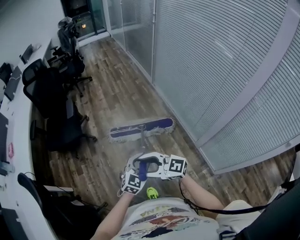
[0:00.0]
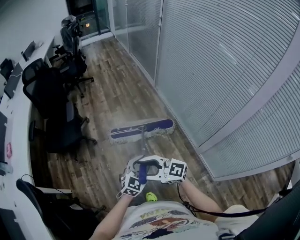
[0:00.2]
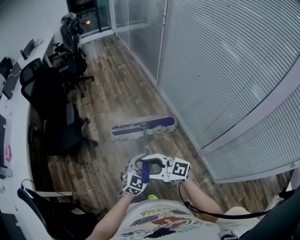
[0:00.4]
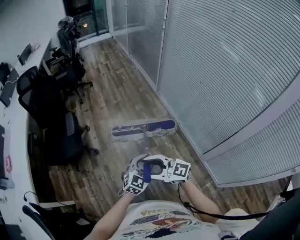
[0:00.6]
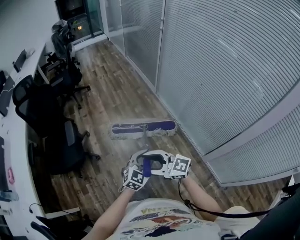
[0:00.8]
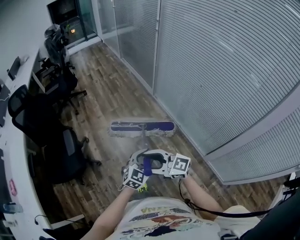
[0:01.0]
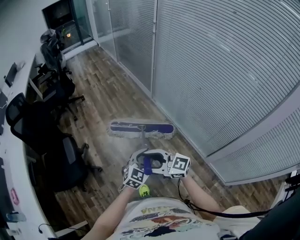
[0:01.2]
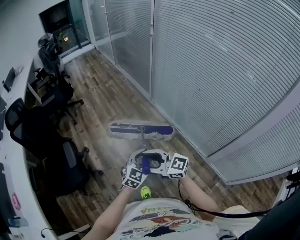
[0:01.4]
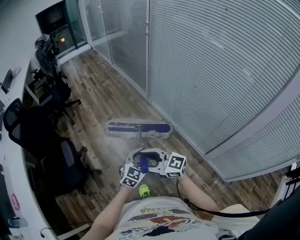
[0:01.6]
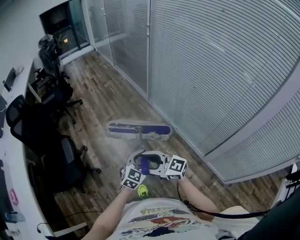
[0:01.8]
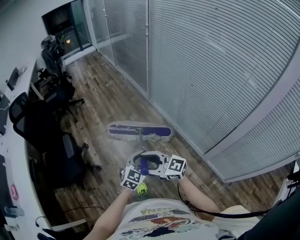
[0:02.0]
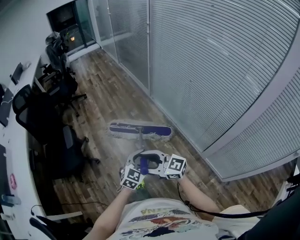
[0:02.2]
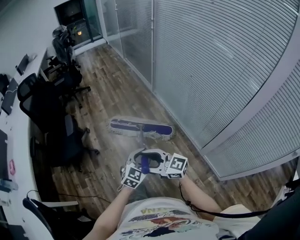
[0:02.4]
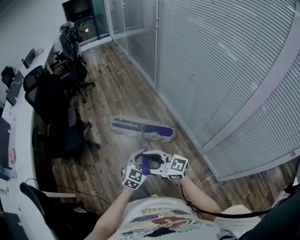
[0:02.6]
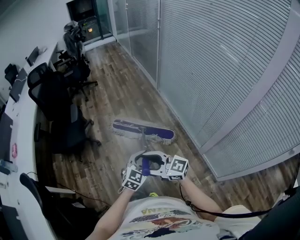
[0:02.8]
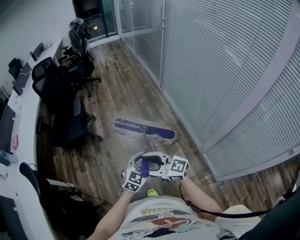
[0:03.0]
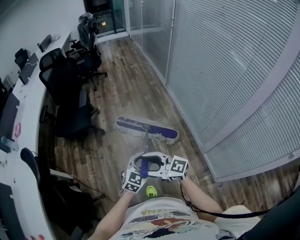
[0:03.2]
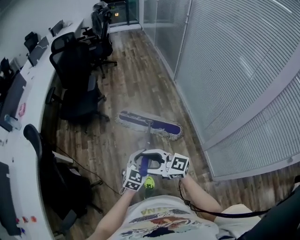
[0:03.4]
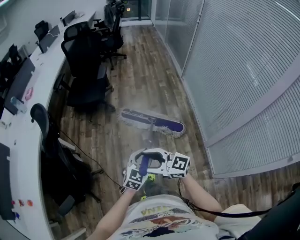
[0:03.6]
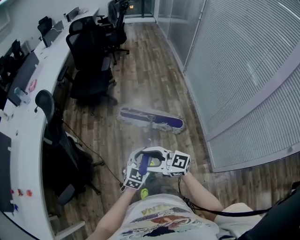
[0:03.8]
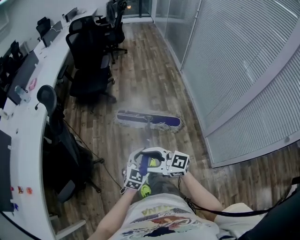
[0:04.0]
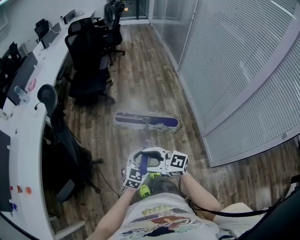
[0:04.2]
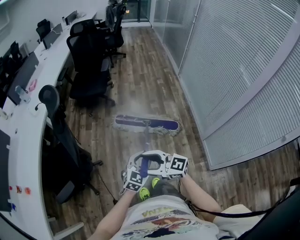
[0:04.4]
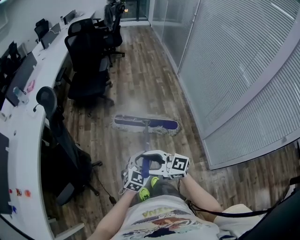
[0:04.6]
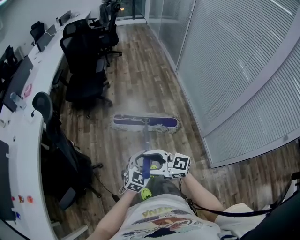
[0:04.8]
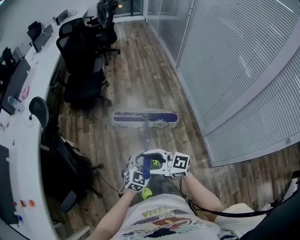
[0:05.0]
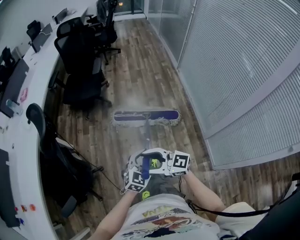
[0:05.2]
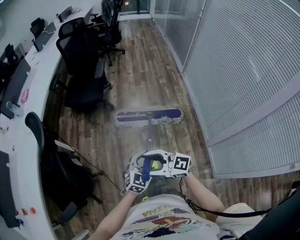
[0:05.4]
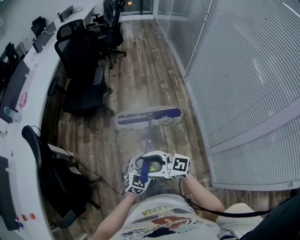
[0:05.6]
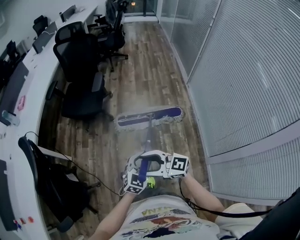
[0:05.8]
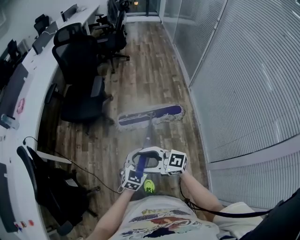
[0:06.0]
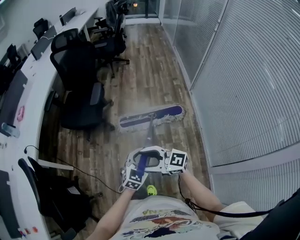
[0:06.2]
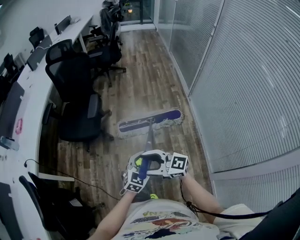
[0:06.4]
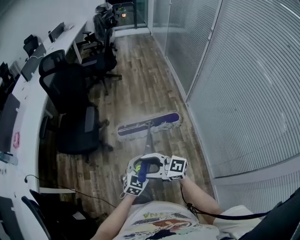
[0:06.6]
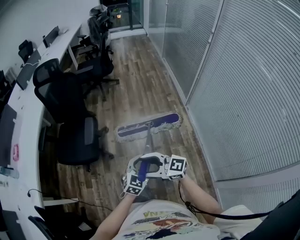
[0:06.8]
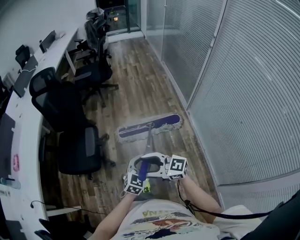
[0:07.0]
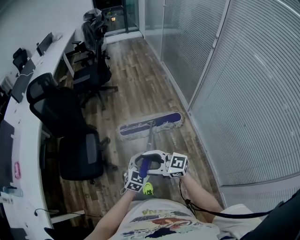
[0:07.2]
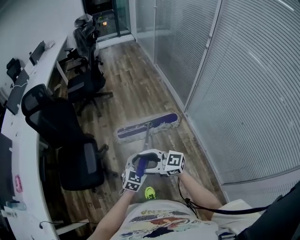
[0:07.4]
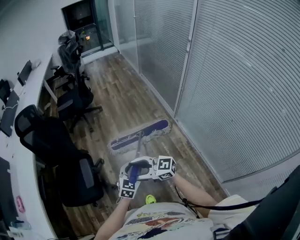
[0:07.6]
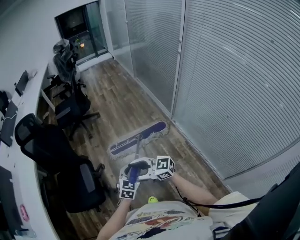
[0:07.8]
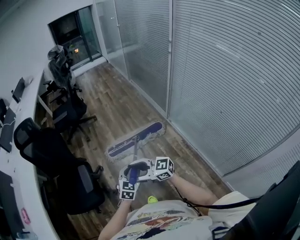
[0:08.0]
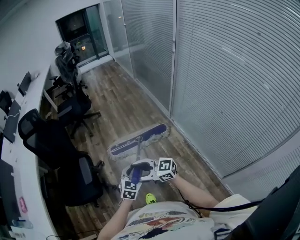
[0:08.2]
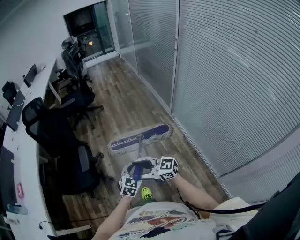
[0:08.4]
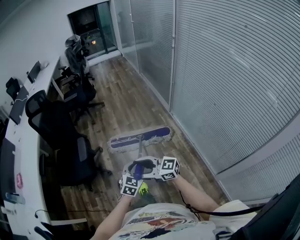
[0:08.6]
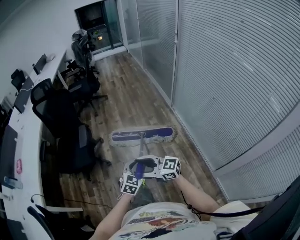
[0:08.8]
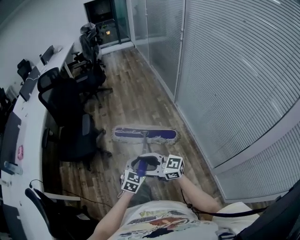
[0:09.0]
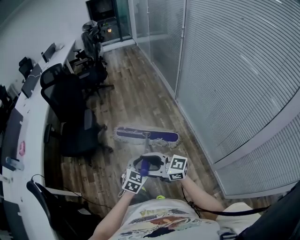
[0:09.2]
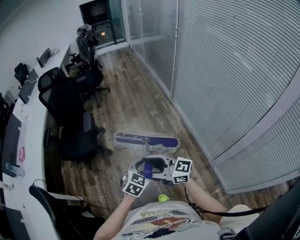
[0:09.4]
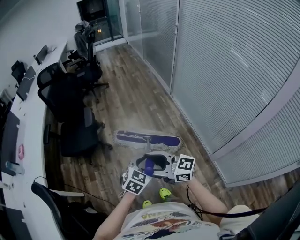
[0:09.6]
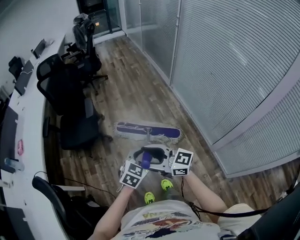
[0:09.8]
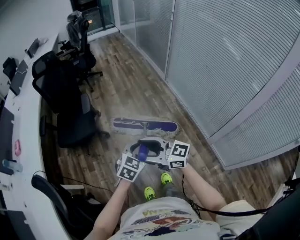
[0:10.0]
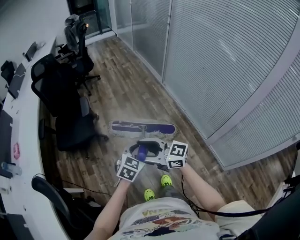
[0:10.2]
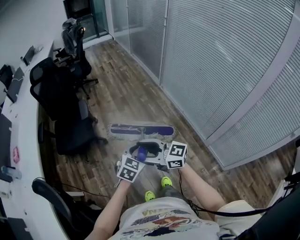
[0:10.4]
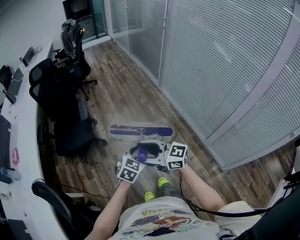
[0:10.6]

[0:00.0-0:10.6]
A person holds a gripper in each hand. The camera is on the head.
0:00.0 to 0:01.6: The pair of grippers is taken forward, about 40 cm.
0:01.6 to 0:03.0: The pair of grippers is taken backward, some 40 cm.
0:03.0 to 0:04.6: The two grippers go roughly 35 cm backward and to the left.
0:04.6 to 0:06.0: The pair of grippers is taken forward and to the right, some 50 cm.
0:06.0 to 0:07.6: The pair of grippers is taken forward, approximately 50 cm.
0:07.6 to 0:09.0: The pair of grippers is taken backward, some 50 cm.
0:09.0 to 0:10.6: Both grippers move to the left and backward, some 20 cm.

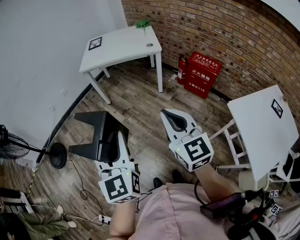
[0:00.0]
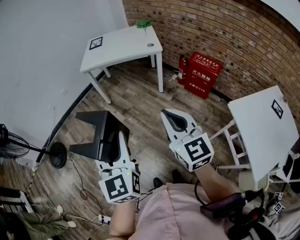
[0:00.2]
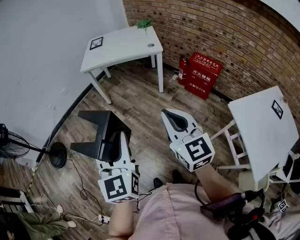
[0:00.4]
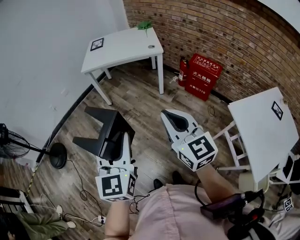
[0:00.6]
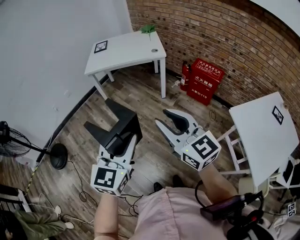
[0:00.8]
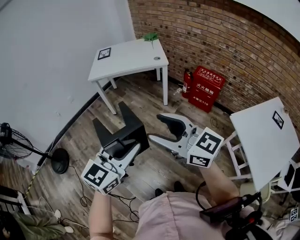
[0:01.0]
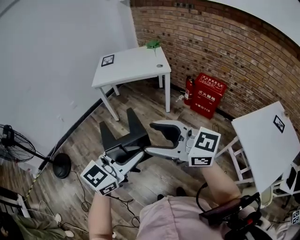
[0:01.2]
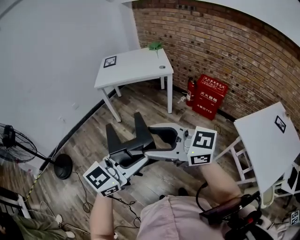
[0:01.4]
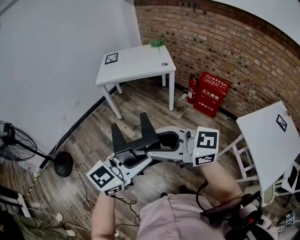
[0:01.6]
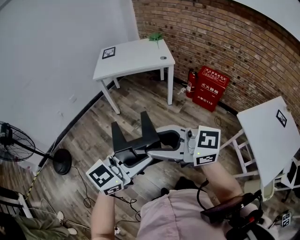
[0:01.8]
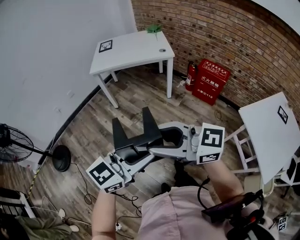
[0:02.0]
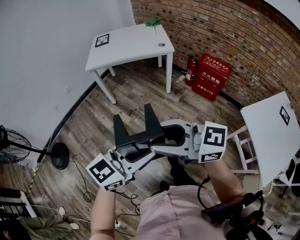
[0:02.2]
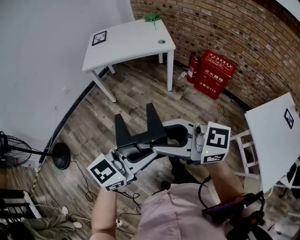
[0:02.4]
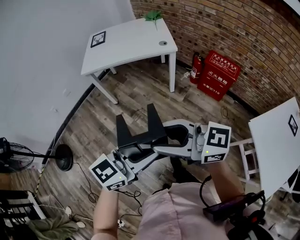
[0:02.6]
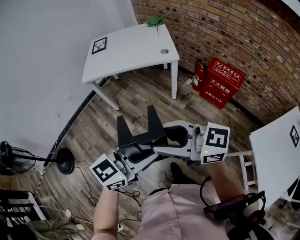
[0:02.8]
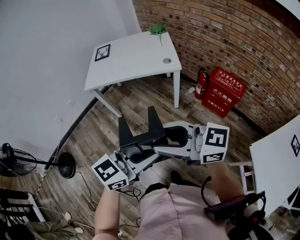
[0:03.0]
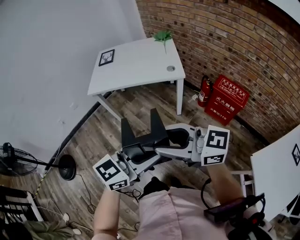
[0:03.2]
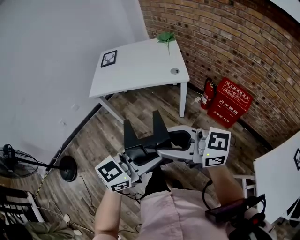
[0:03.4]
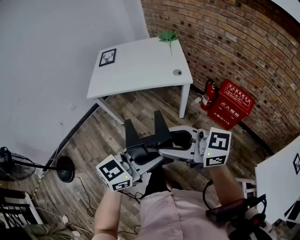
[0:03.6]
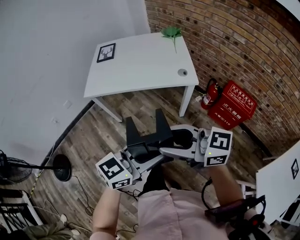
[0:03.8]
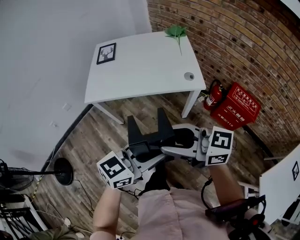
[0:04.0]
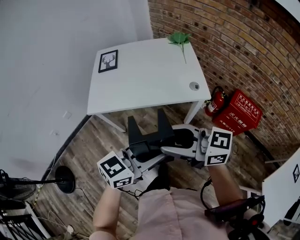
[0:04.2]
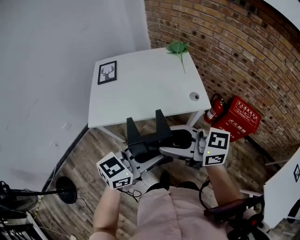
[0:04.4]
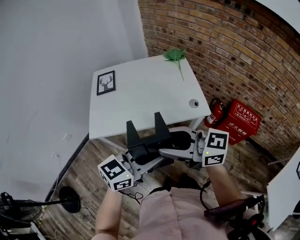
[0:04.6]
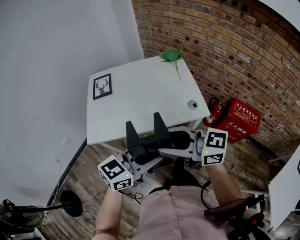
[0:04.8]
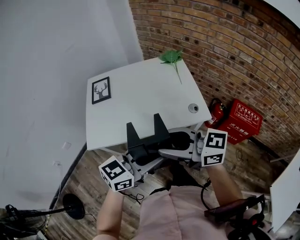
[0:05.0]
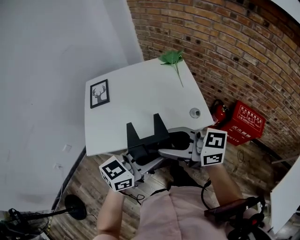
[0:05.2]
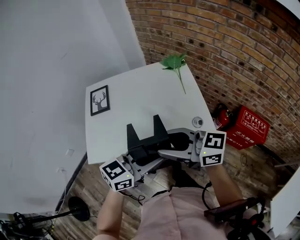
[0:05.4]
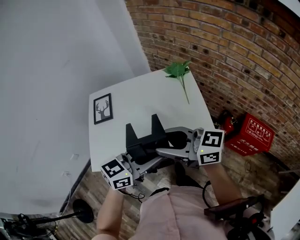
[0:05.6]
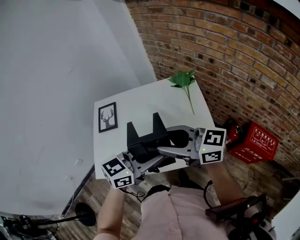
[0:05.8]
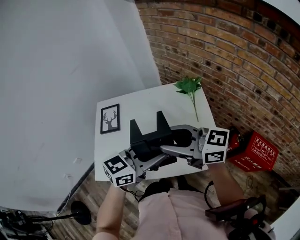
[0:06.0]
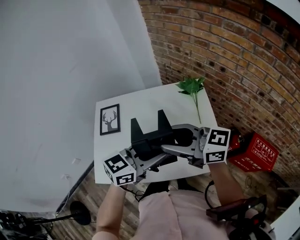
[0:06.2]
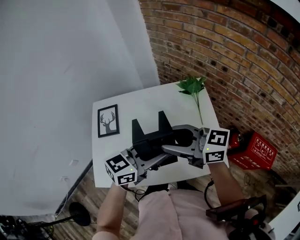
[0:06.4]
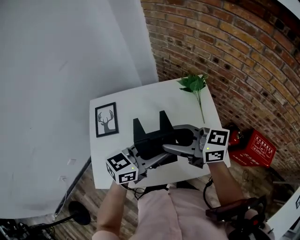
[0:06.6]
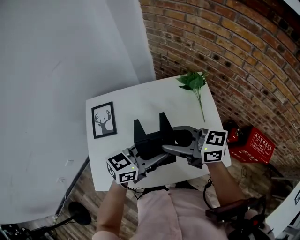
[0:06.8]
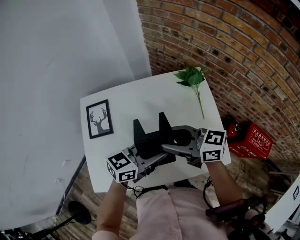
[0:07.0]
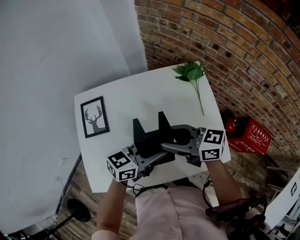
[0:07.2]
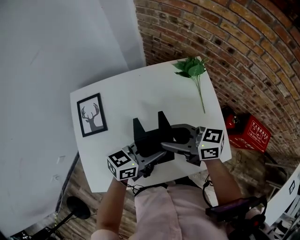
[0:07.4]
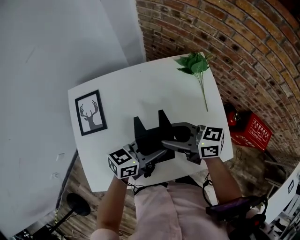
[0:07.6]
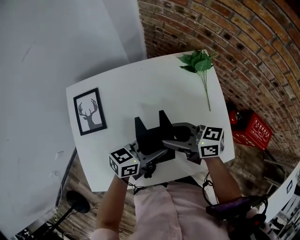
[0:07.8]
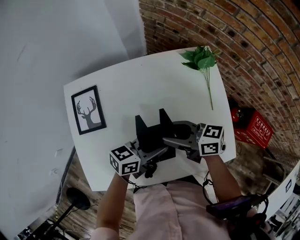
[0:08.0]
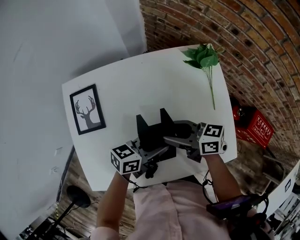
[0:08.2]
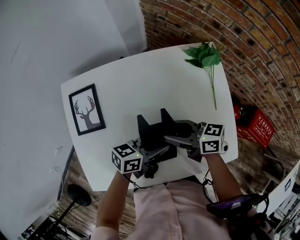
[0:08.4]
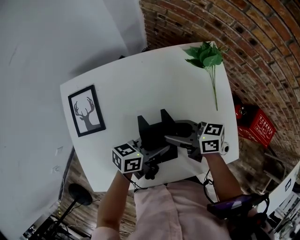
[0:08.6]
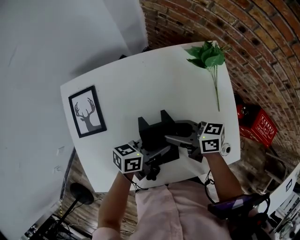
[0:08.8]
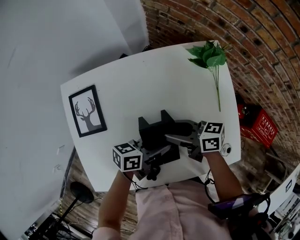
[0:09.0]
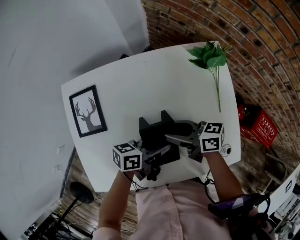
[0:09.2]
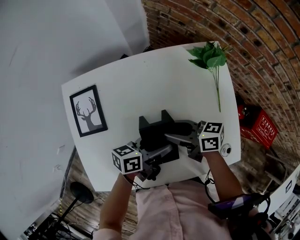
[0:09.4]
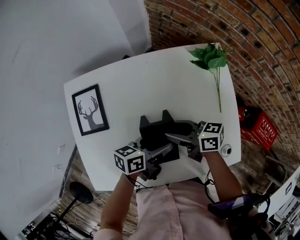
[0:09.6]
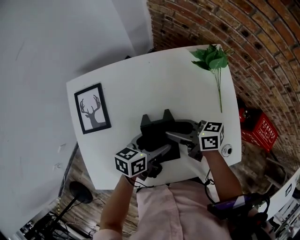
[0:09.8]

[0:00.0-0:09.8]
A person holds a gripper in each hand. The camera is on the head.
0:00.0 to 0:01.4: The left gripper changes place by some 5 cm, and swivels some 60 degrees, while the right gripper changes place by roughly 15 cm, turns by roughly 50 degrees, and opens.
0:01.4 to 0:02.8: The right gripper moves approximately 25 cm, and closes its fingers. The left gripper changes place by approximately 25 cm.
0:02.8 to 0:04.2: The right gripper moves roughly 35 cm, while the left gripper ends up approximately 35 cm from where it was.
0:04.2 to 0:05.6: The left gripper changes place by about 30 cm, while the right gripper changes place by some 30 cm.
0:05.6 to 0:07.0: The right gripper shifts by approximately 20 cm, while the left gripper moves roughly 20 cm.
0:07.0 to 0:08.4: The grippers both shift downward by some 15 cm. The left gripper swivels about 20 degrees; the right gripper turns by some 20 degrees.
0:08.4 to 0:09.8: The left gripper opens its fingers.

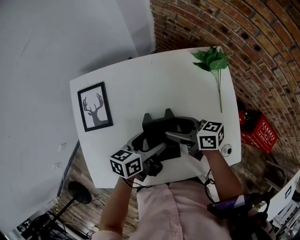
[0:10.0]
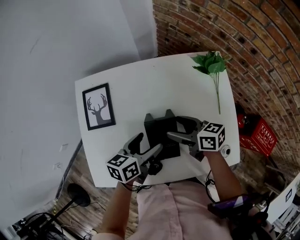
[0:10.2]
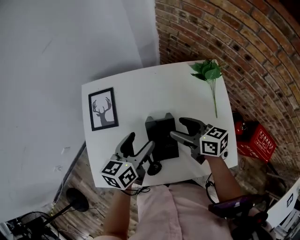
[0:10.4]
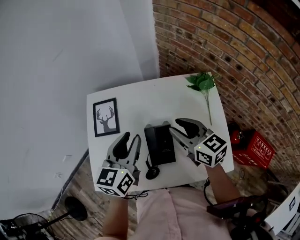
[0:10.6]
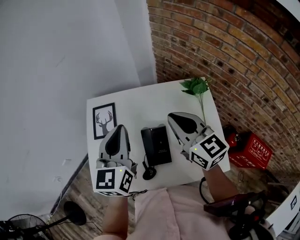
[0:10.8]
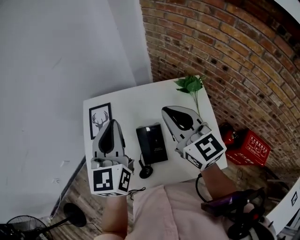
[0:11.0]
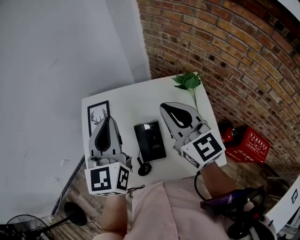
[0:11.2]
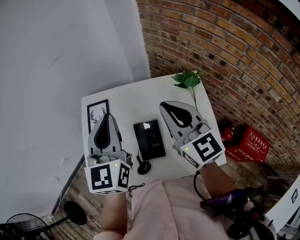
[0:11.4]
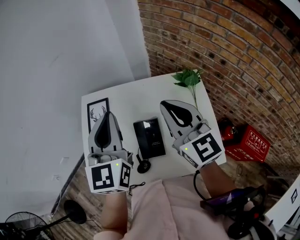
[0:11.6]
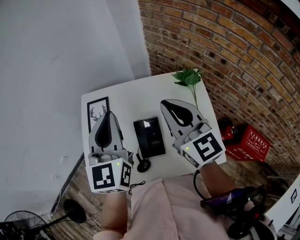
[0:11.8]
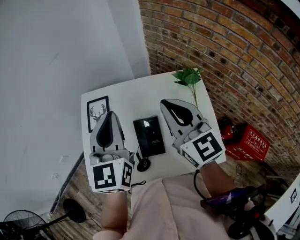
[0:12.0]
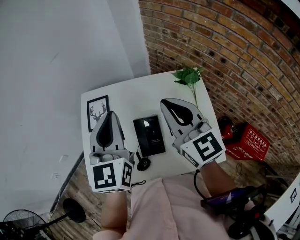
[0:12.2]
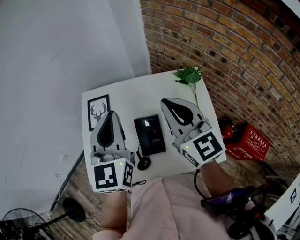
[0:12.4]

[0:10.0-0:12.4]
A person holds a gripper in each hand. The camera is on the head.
0:10.0 to 0:11.2: Both grippers move upward, approximately 30 cm. The right gripper rolls counterclockwise, seen from behind, by about 50 degrees, and closes up, while the left gripper changes its angle by approximately 70 degrees, and closes.
0:11.2 to 0:12.4: The grippers move only a little.

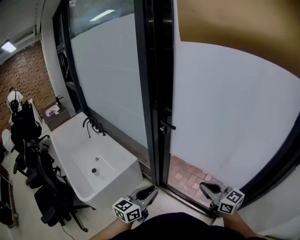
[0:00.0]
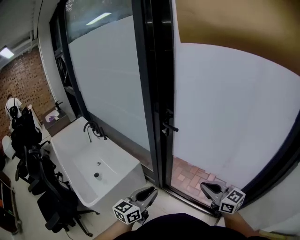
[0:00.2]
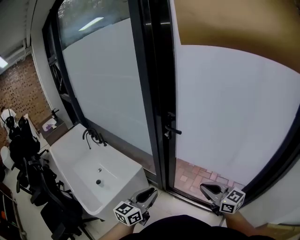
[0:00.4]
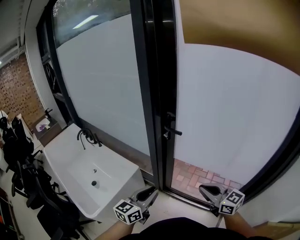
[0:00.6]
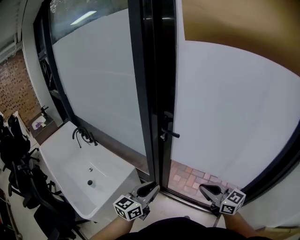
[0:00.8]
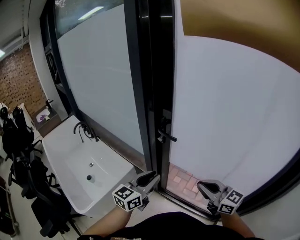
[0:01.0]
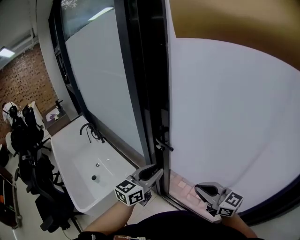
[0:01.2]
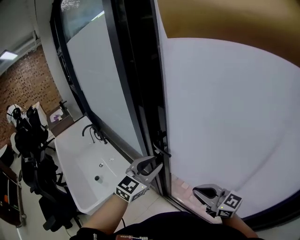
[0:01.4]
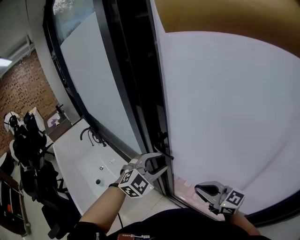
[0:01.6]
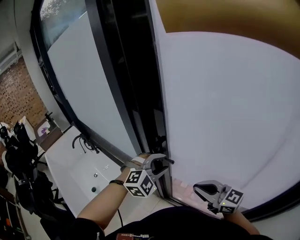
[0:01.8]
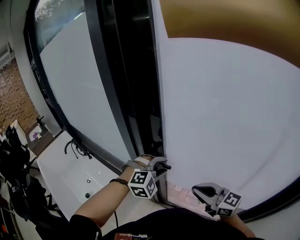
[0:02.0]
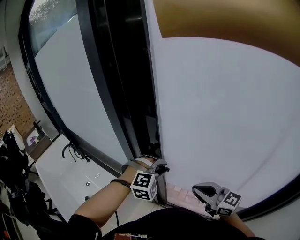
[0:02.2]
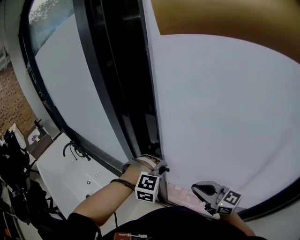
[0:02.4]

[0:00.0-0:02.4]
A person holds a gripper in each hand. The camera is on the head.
0:00.0 to 0:01.2: The left gripper heads forward, covering about 20 cm, while the right gripper heads forward, covering some 15 cm.
0:01.2 to 0:02.4: The right gripper goes roughly 10 cm forward. The left gripper travels forward, downward and to the right by approximately 15 cm, and twists approximately 90 degrees clockwise, seen from behind.
